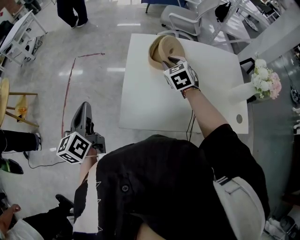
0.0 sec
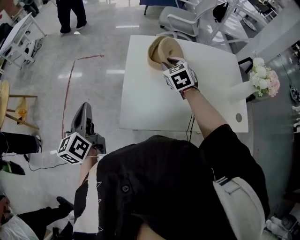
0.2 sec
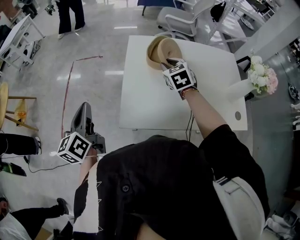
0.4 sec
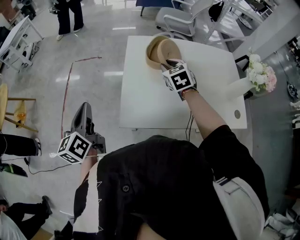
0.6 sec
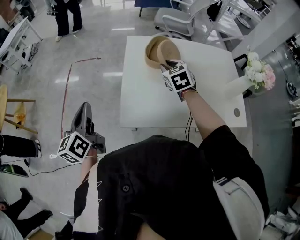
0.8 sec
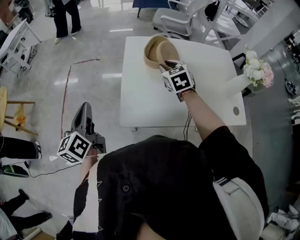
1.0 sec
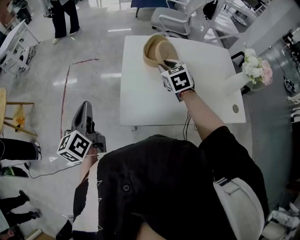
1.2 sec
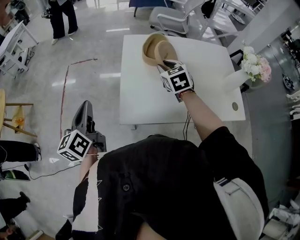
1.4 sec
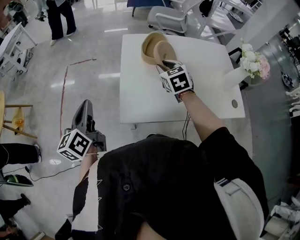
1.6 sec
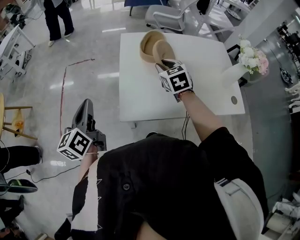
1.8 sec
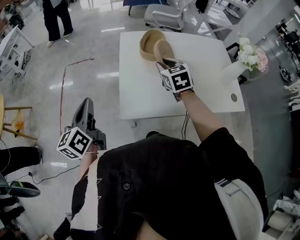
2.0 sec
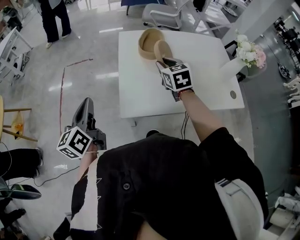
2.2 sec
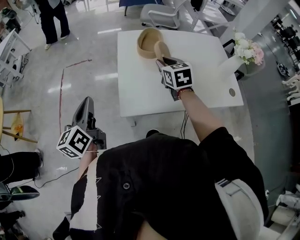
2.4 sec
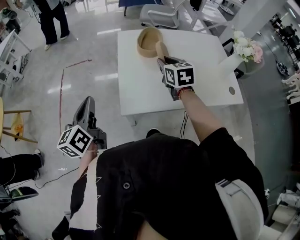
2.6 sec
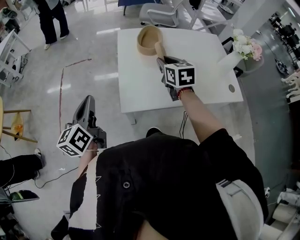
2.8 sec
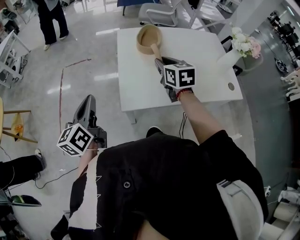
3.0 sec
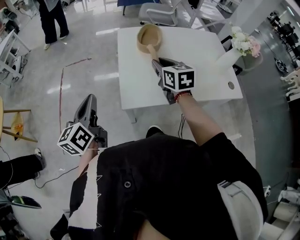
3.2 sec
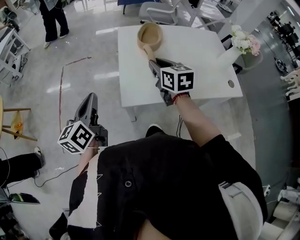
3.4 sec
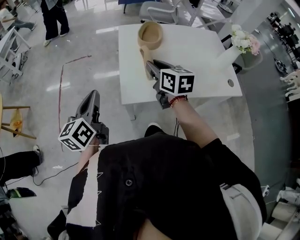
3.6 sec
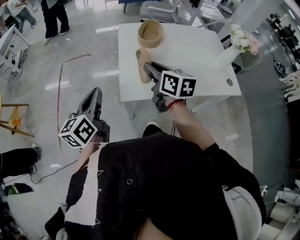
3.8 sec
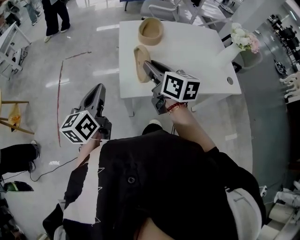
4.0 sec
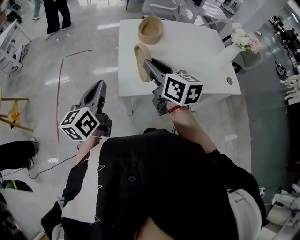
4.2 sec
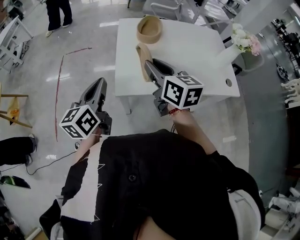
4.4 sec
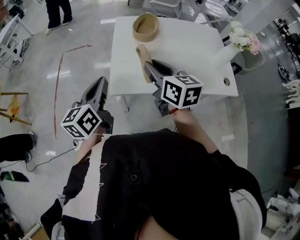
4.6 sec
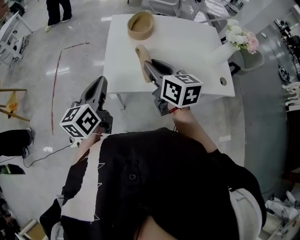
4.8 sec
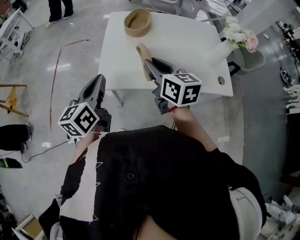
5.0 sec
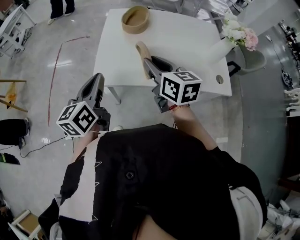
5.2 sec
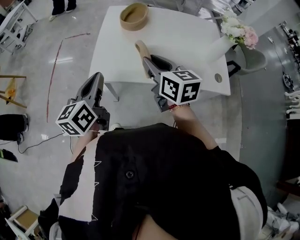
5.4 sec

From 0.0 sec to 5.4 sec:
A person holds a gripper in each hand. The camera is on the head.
From 0.0 sec to 1.4 sec: The right gripper moves backward, approximately 5 cm.
From 1.4 sec to 2.8 sec: The right gripper travels backward by roughly 5 cm, and changes its angle by about 20 degrees.
From 2.8 sec to 4.0 sec: The right gripper goes roughly 15 cm backward and to the left, and turns by some 30 degrees. Meanwhile the left gripper moves some 5 cm.
From 4.0 sec to 5.4 sec: The two grippers go approximately 15 cm to the right.
